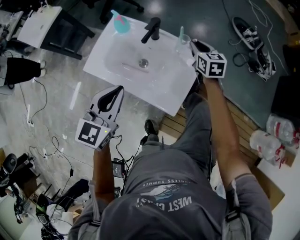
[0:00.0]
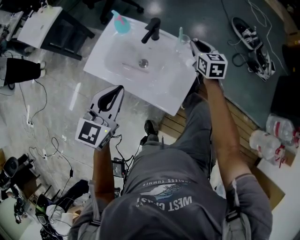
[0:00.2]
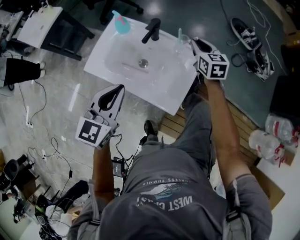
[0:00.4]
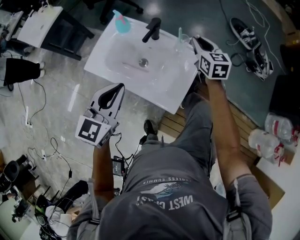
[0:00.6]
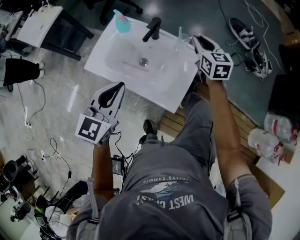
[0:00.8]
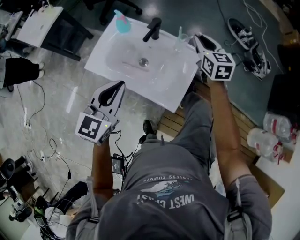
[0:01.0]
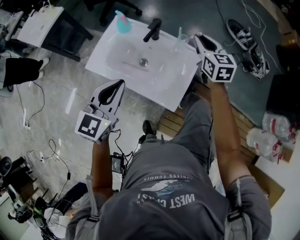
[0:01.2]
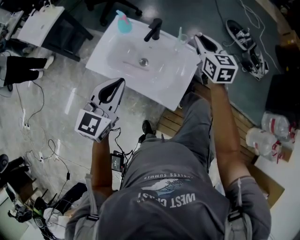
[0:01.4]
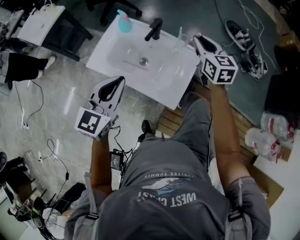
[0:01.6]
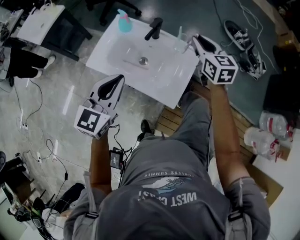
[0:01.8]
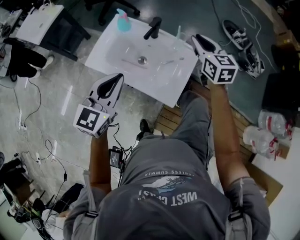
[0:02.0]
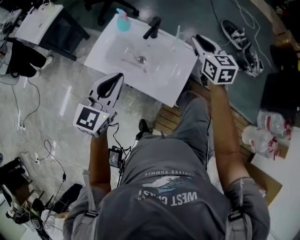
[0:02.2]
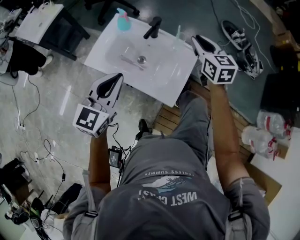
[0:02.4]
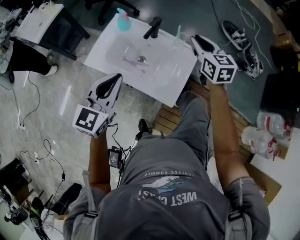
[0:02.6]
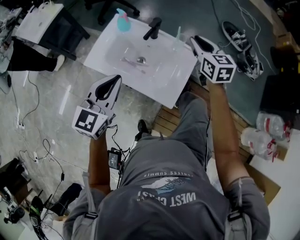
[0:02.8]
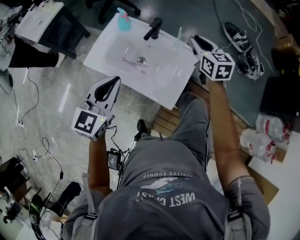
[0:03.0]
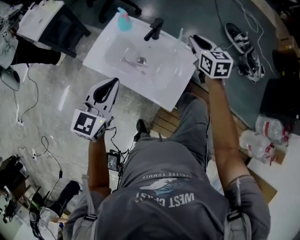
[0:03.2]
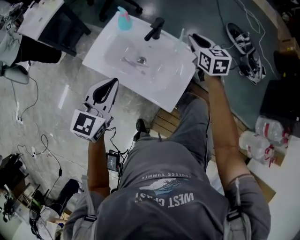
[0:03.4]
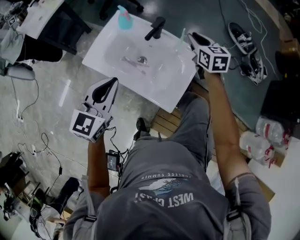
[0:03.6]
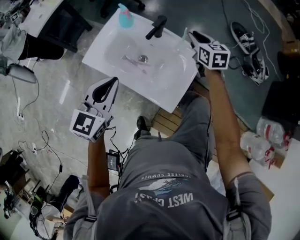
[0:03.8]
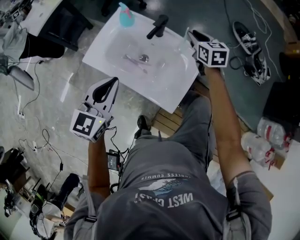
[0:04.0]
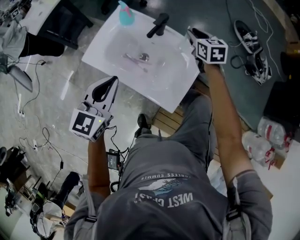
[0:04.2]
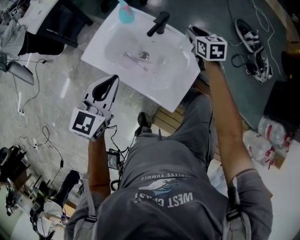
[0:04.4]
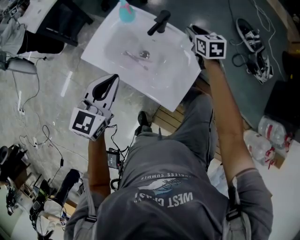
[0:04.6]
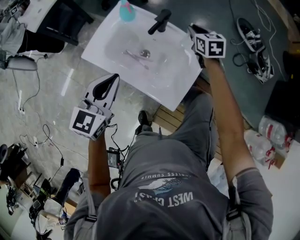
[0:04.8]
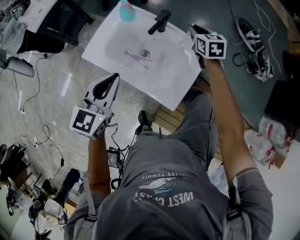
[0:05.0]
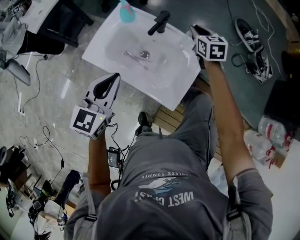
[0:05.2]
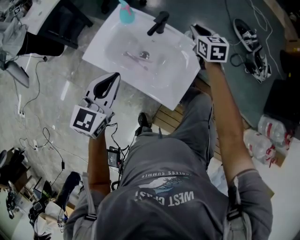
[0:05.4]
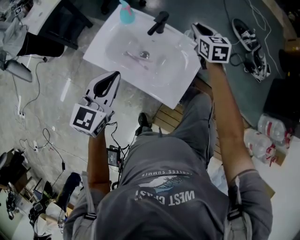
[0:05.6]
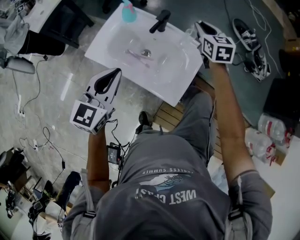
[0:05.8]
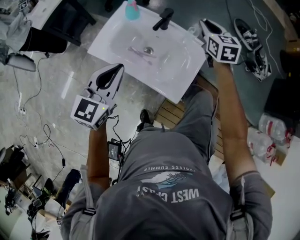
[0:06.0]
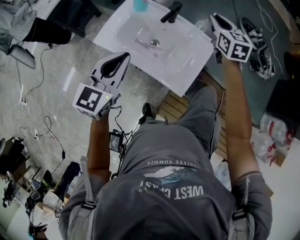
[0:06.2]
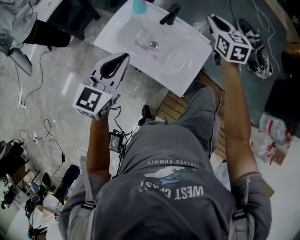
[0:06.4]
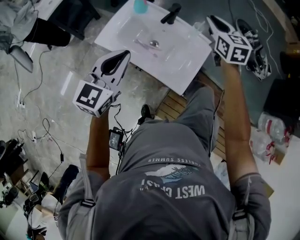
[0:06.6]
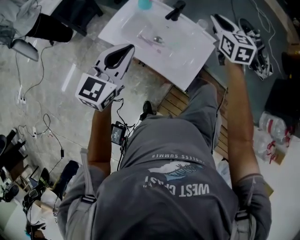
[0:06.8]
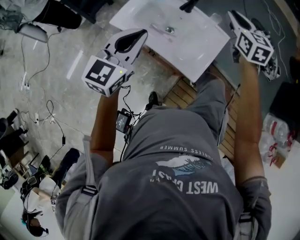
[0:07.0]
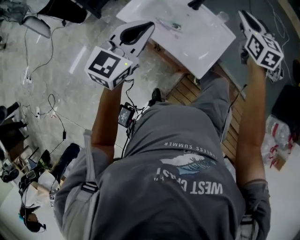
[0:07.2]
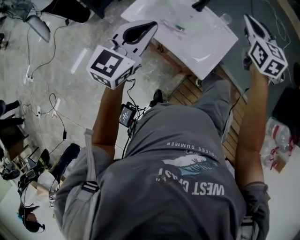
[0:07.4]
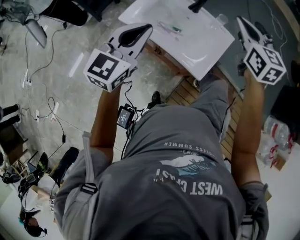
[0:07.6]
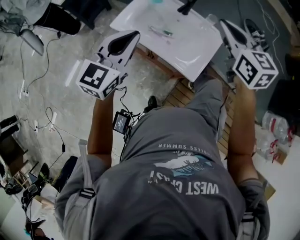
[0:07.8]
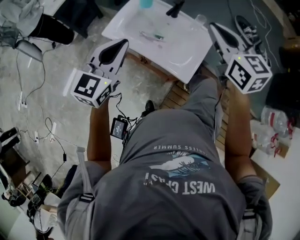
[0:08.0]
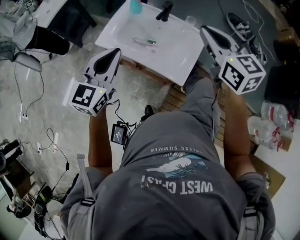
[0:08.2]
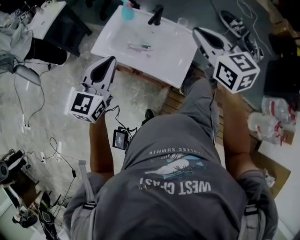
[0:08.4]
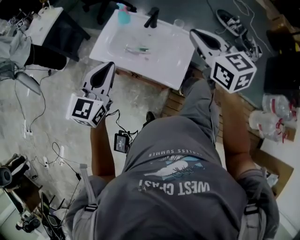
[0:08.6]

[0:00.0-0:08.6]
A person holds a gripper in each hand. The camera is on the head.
0.0 to 1.4 s: The right gripper goes about 15 cm upward.
1.4 to 2.8 s: There are only small adjustments of the grippers.
2.8 to 4.4 s: The left gripper moves roughly 5 cm. The right gripper moves downward and forward, roughly 15 cm.
4.4 to 5.8 s: The right gripper heads upward, covering about 10 cm.
5.8 to 7.2 s: The left gripper heads upward, covering some 5 cm; the right gripper goes some 15 cm upward and backward.
7.2 to 8.6 s: The right gripper goes some 15 cm backward and upward.

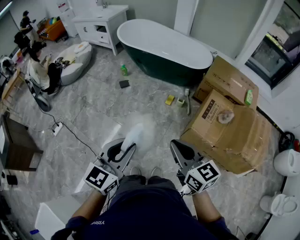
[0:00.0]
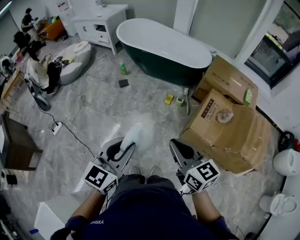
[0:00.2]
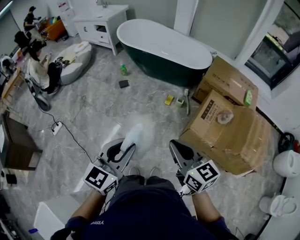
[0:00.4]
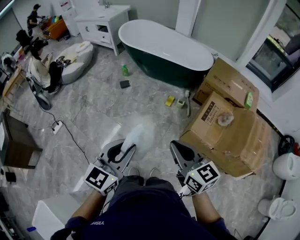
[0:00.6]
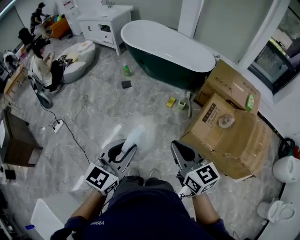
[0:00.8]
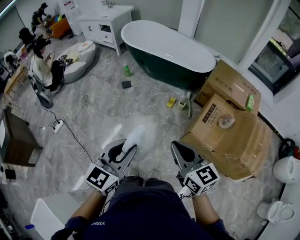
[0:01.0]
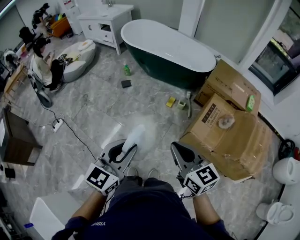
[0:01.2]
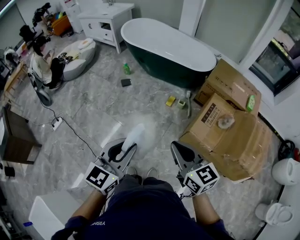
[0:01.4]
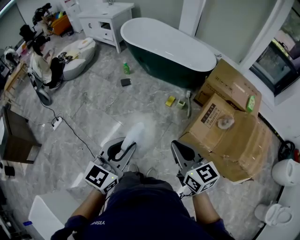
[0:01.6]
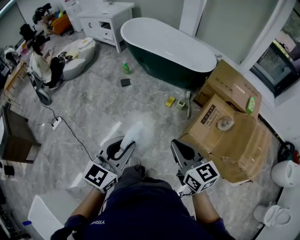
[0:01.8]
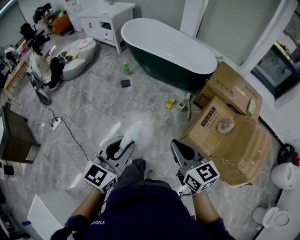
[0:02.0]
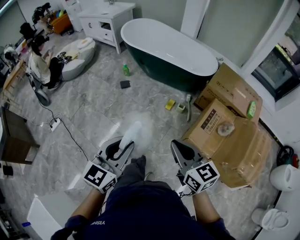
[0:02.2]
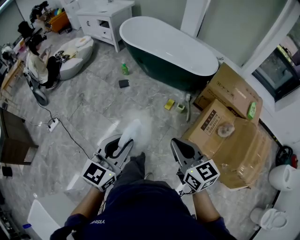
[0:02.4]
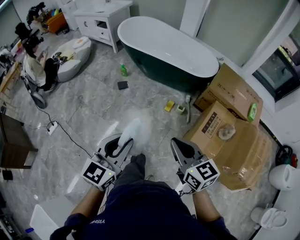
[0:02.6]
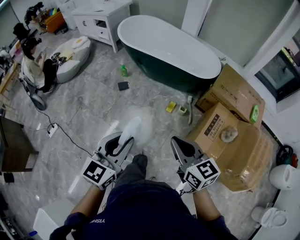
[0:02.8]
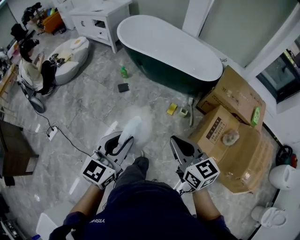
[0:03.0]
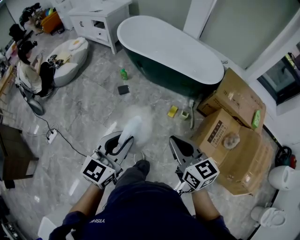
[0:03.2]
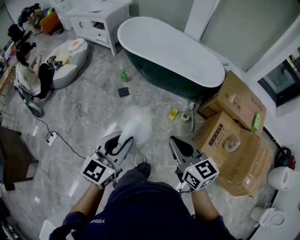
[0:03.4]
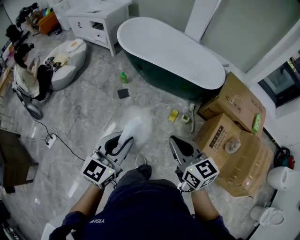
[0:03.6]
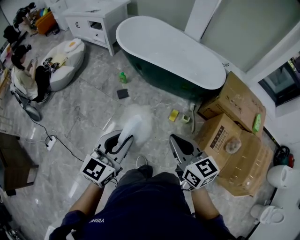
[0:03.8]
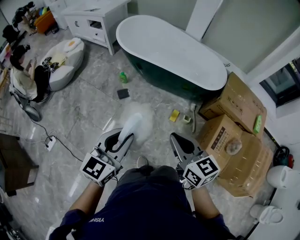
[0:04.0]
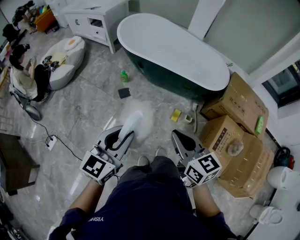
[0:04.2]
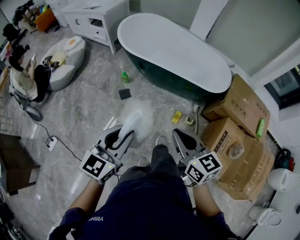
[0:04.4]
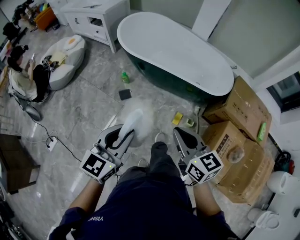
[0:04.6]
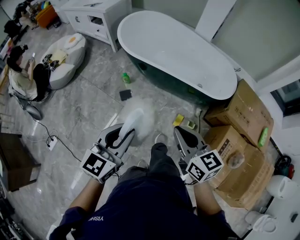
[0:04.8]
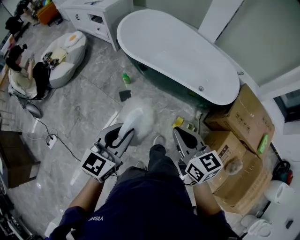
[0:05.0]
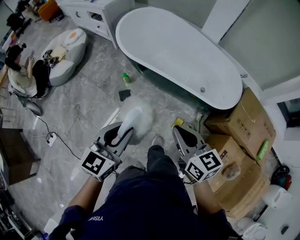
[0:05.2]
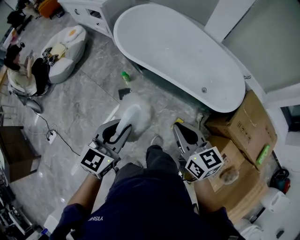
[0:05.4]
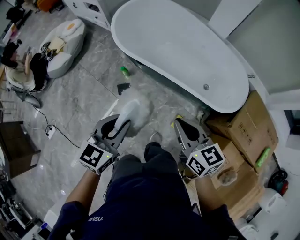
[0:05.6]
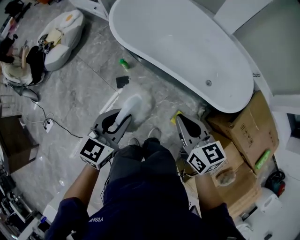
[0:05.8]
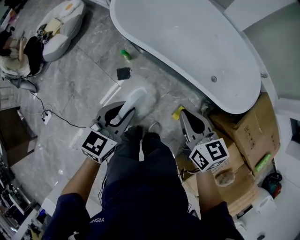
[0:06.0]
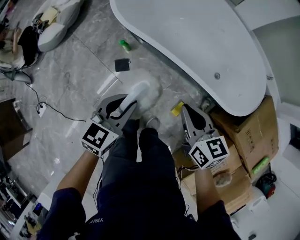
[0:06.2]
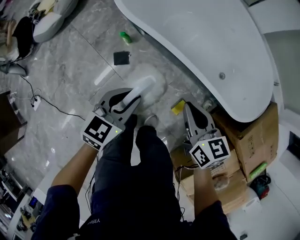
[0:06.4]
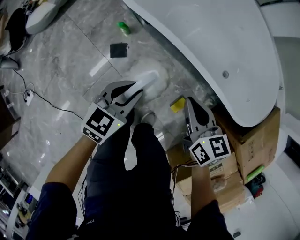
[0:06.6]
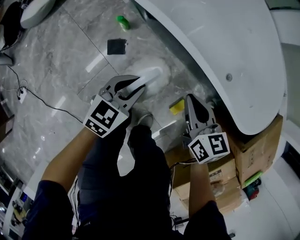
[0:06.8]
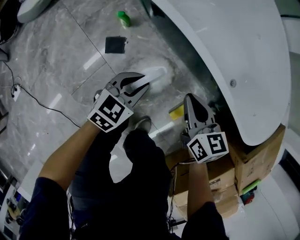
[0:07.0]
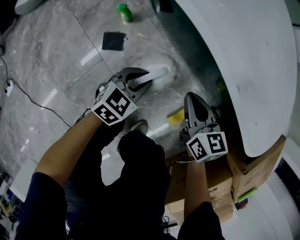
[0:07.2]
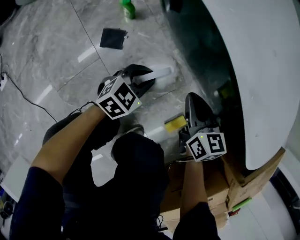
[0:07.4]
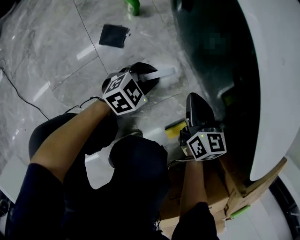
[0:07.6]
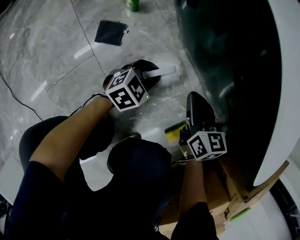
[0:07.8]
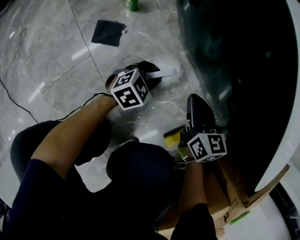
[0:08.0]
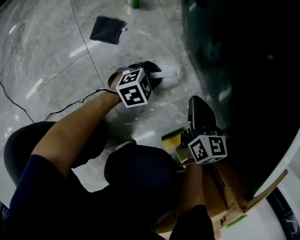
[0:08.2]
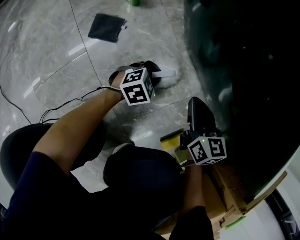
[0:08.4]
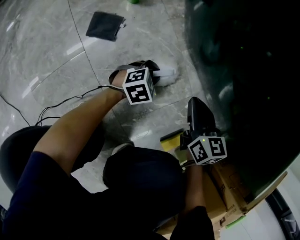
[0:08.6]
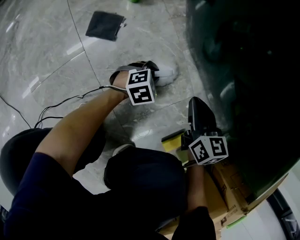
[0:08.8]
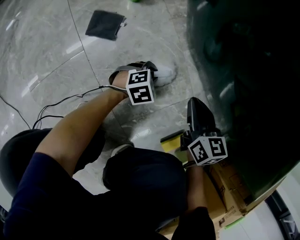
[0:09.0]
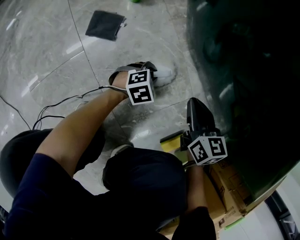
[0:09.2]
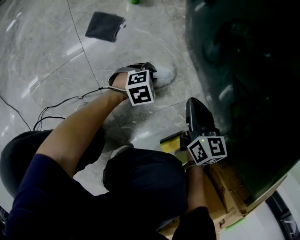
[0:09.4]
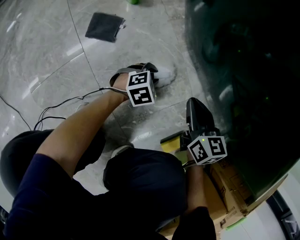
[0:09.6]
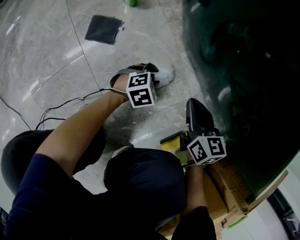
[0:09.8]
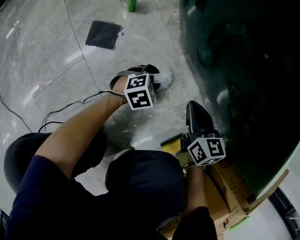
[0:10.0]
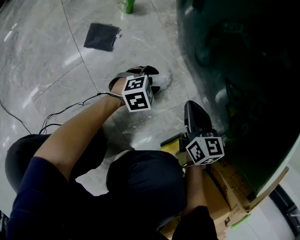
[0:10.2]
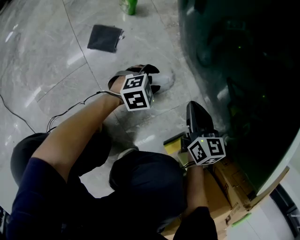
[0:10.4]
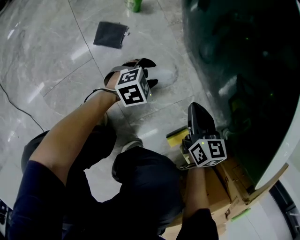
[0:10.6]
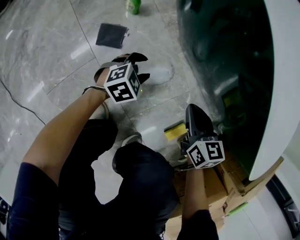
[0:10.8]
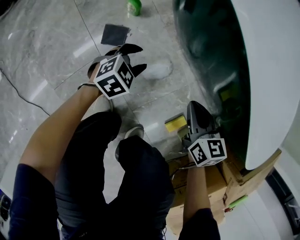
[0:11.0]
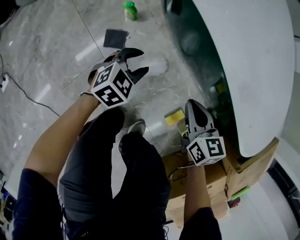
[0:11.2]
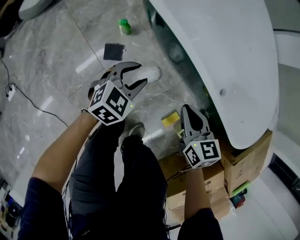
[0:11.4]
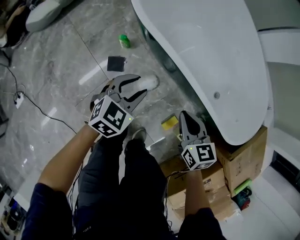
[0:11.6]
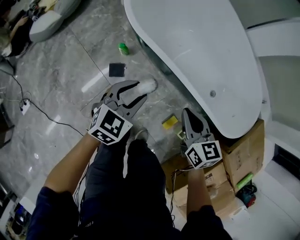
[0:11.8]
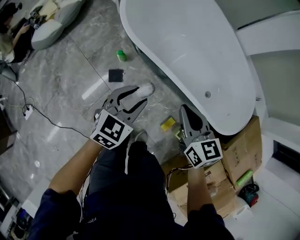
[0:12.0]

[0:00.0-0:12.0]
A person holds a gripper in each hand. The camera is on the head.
0.0 to 1.6 s: The grippers make only small movements.
1.6 to 3.0 s: Both grippers travel together forward, roughly 20 cm.
3.0 to 4.4 s: The right gripper moves forward, approximately 20 cm; the left gripper is displaced forward and to the left by approximately 20 cm.
4.4 to 6.0 s: Both grippers travel together forward and downward, roughly 40 cm.
6.0 to 7.6 s: Both grippers travel together downward, some 60 cm.
7.6 to 9.0 s: The left gripper moves downward, some 20 cm. The right gripper moves downward, approximately 15 cm.
9.0 to 10.4 s: The left gripper heads upward, covering roughly 5 cm, and opens.
10.4 to 12.0 s: Both grippers move upward, about 60 cm. The left gripper rotates approximately 30 degrees.

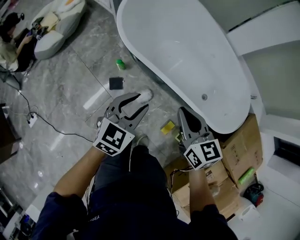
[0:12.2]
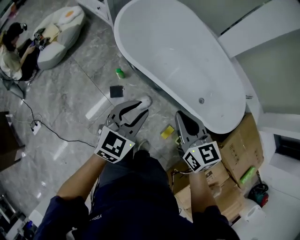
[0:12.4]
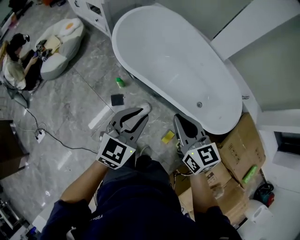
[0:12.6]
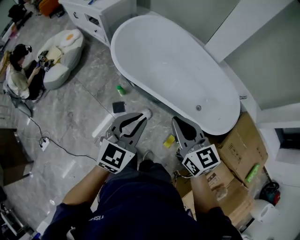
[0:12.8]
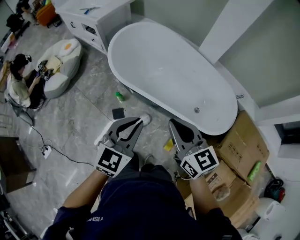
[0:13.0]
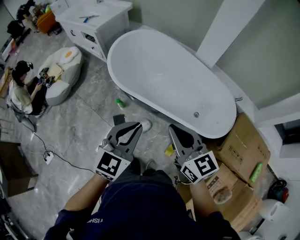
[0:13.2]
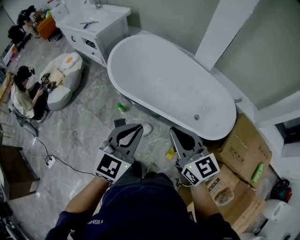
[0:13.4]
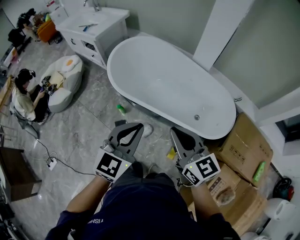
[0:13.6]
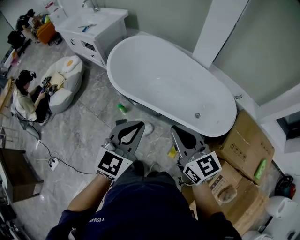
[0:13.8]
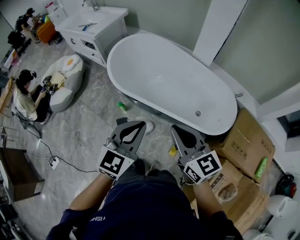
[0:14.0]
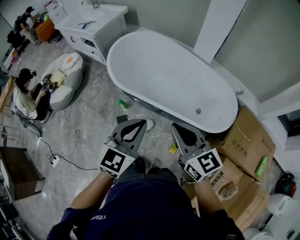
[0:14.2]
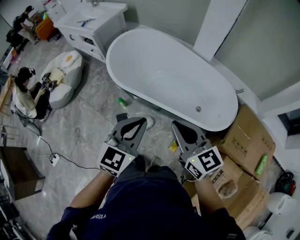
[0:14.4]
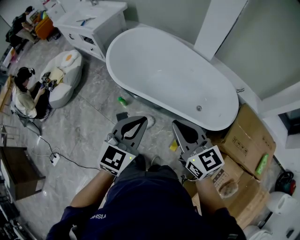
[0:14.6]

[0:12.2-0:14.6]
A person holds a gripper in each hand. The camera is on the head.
12.2 to 13.4 s: The grippers both shift upward by about 20 cm. The left gripper closes its fingers.
13.4 to 14.6 s: The grippers move only a little.

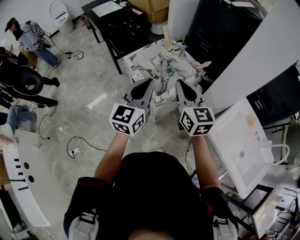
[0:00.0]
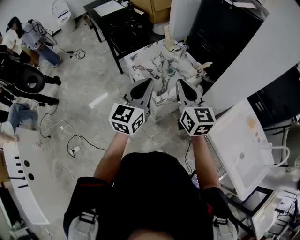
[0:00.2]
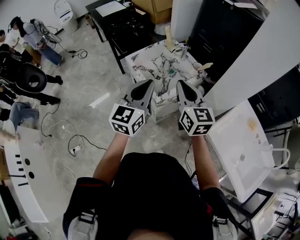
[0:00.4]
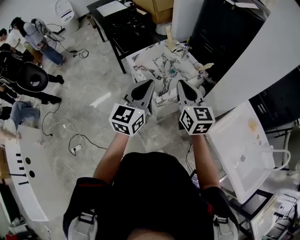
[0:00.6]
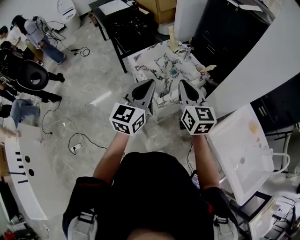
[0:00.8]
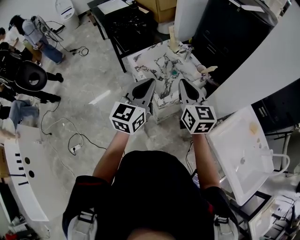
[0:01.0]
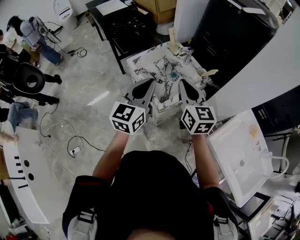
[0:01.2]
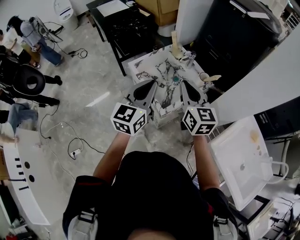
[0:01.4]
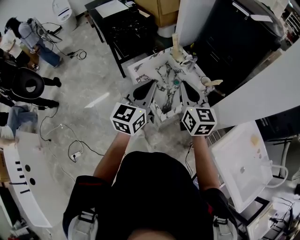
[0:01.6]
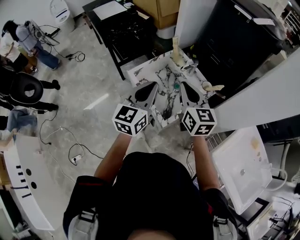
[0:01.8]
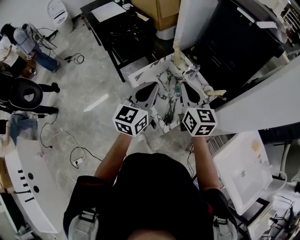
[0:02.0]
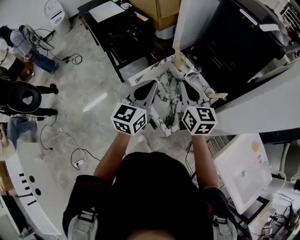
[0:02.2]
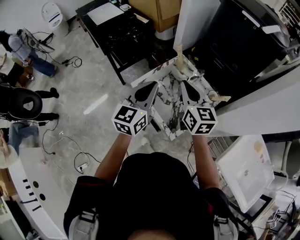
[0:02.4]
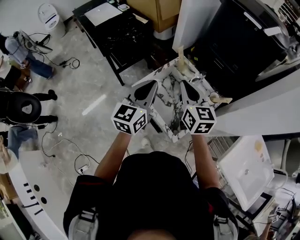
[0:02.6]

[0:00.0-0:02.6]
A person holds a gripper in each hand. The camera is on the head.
0.0 to 1.2 s: The two grippers go approximately 5 cm forward.
1.2 to 2.6 s: The two grippers go approximately 25 cm forward and to the left.
